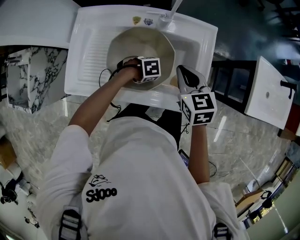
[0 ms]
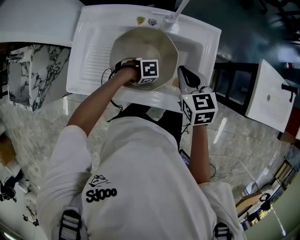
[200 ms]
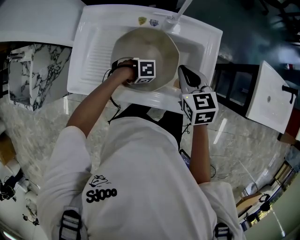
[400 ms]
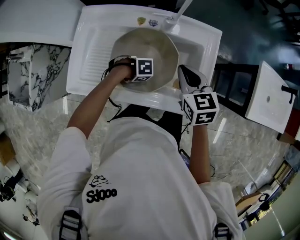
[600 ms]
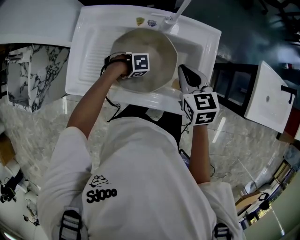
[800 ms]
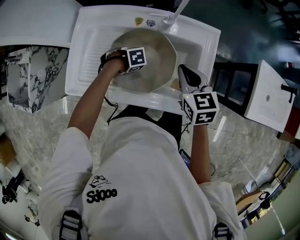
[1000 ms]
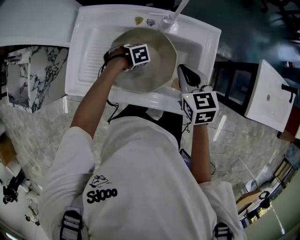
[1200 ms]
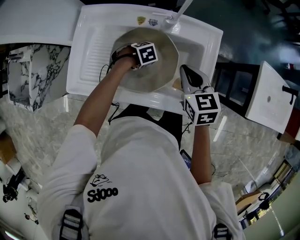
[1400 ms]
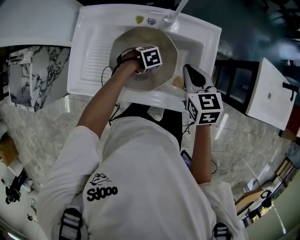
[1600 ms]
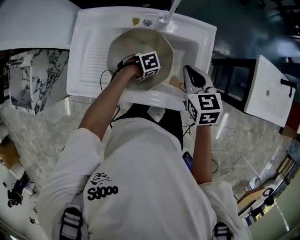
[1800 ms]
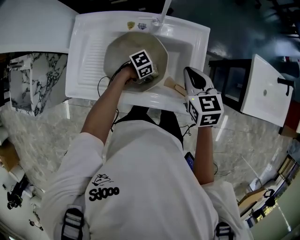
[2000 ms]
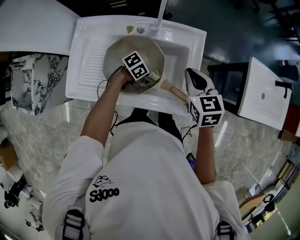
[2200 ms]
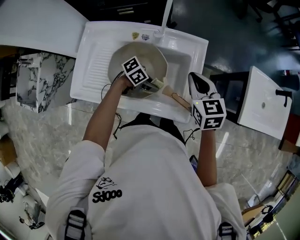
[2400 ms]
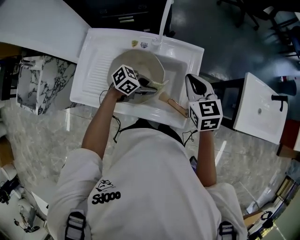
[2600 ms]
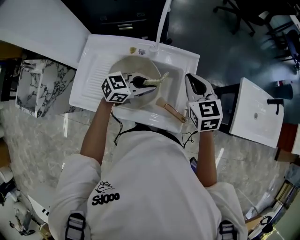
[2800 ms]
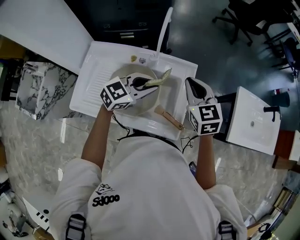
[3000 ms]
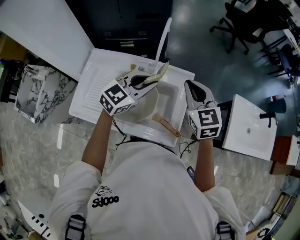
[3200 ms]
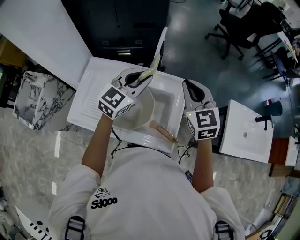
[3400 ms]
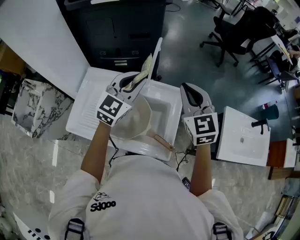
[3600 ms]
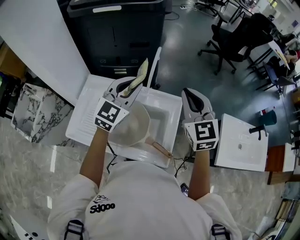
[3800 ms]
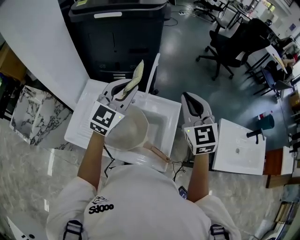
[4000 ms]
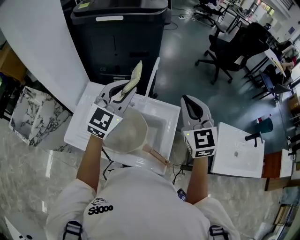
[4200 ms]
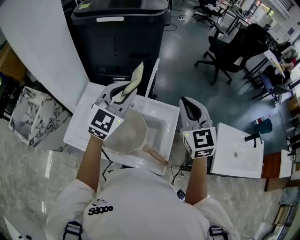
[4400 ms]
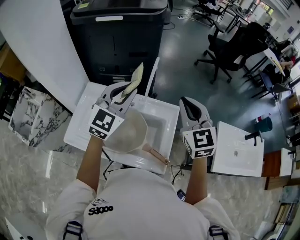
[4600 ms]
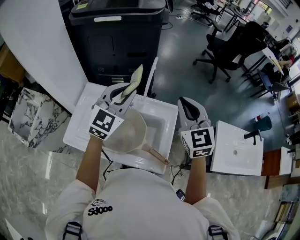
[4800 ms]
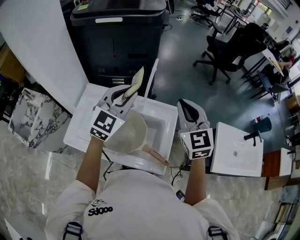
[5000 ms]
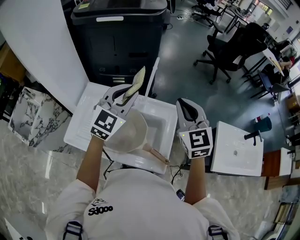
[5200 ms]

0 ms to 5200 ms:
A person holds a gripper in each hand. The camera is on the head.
1800 ms to 3400 ms: The left gripper travels upward by roughly 40 cm, and angles its fingers upward, by some 60 degrees. Meanwhile the right gripper heads upward, covering roughly 20 cm, and rotates approximately 30 degrees.
3400 ms to 5200 ms: The grippers both shift upward by approximately 5 cm.

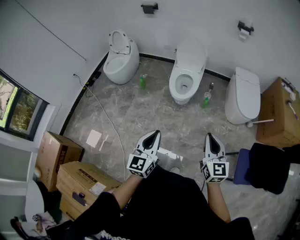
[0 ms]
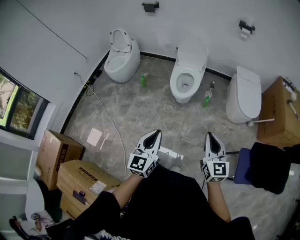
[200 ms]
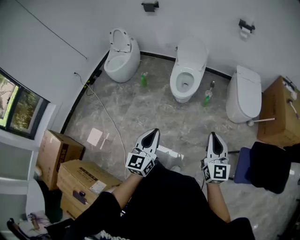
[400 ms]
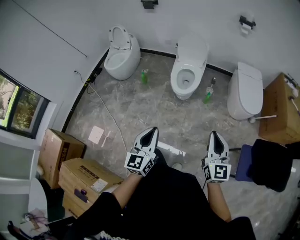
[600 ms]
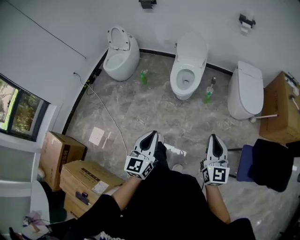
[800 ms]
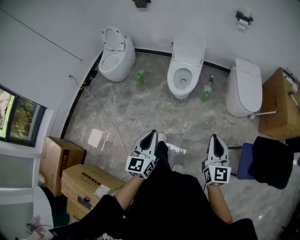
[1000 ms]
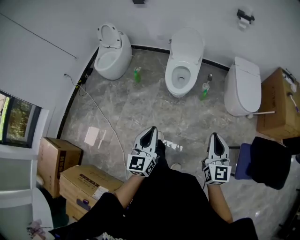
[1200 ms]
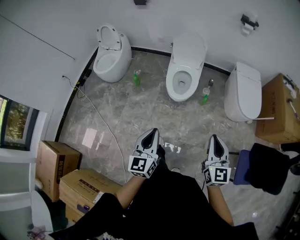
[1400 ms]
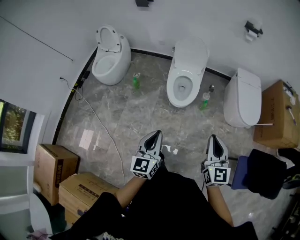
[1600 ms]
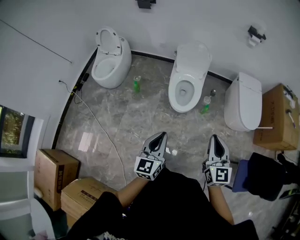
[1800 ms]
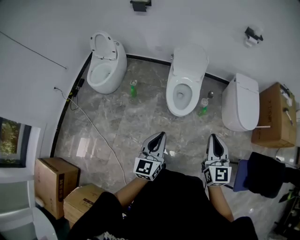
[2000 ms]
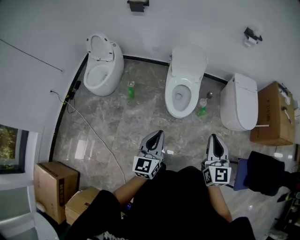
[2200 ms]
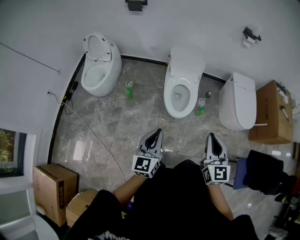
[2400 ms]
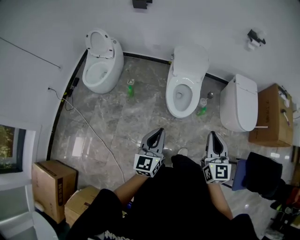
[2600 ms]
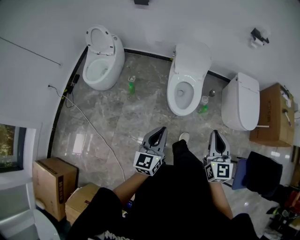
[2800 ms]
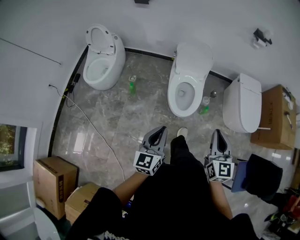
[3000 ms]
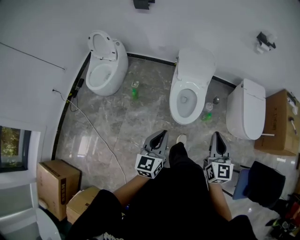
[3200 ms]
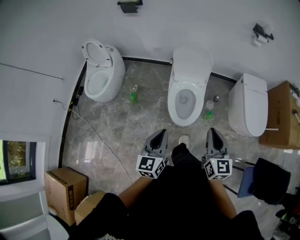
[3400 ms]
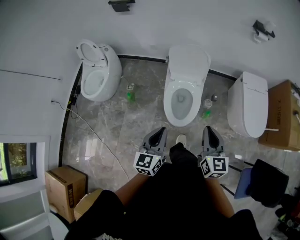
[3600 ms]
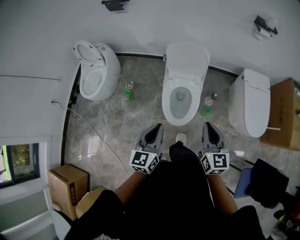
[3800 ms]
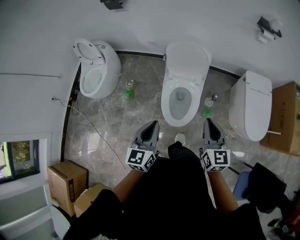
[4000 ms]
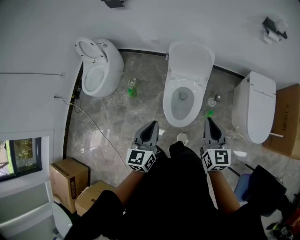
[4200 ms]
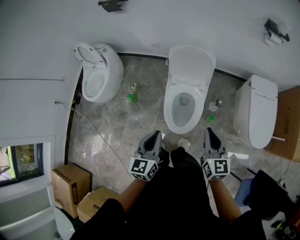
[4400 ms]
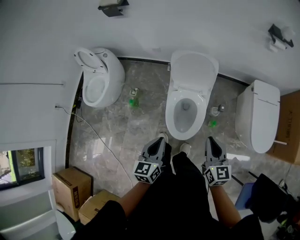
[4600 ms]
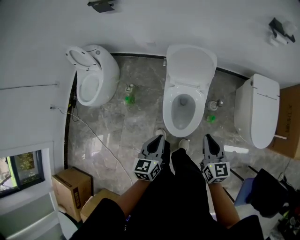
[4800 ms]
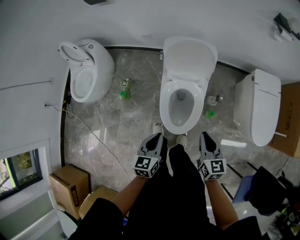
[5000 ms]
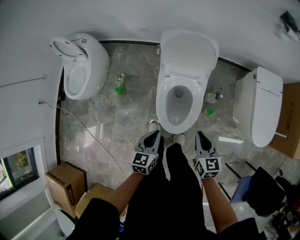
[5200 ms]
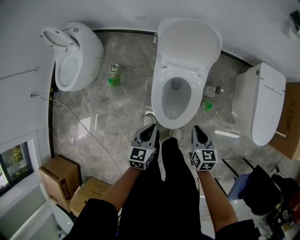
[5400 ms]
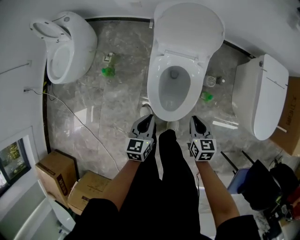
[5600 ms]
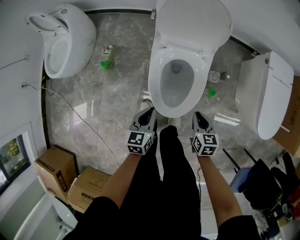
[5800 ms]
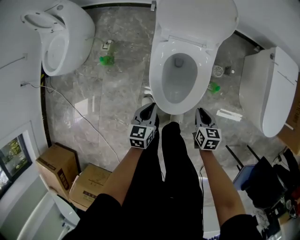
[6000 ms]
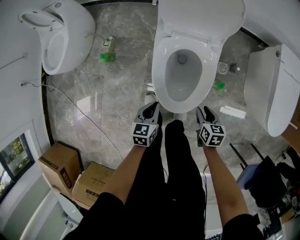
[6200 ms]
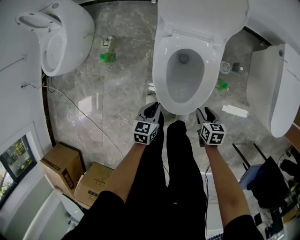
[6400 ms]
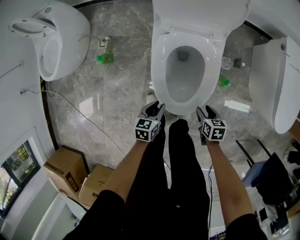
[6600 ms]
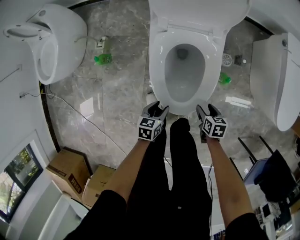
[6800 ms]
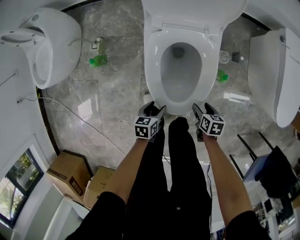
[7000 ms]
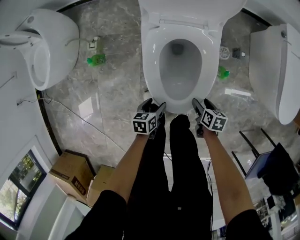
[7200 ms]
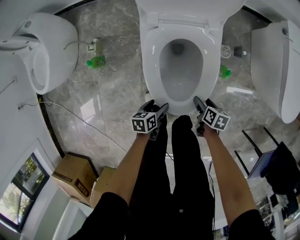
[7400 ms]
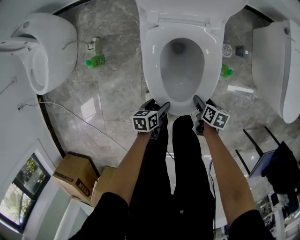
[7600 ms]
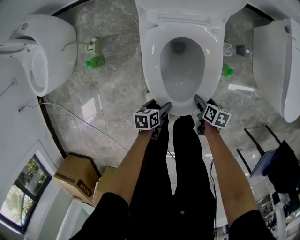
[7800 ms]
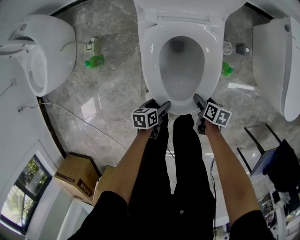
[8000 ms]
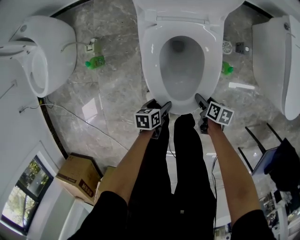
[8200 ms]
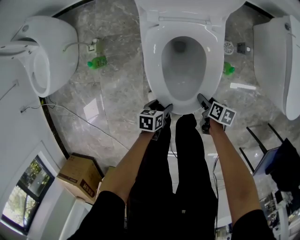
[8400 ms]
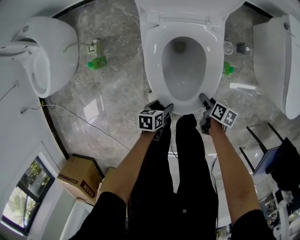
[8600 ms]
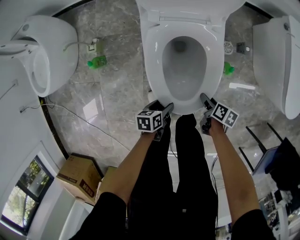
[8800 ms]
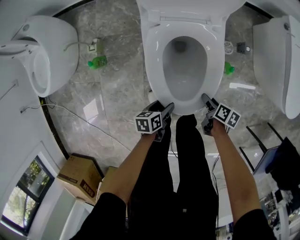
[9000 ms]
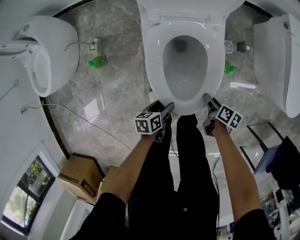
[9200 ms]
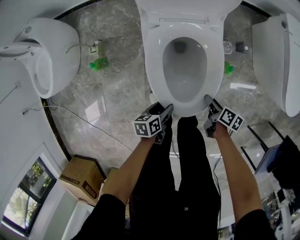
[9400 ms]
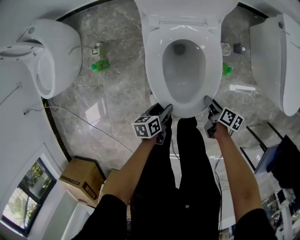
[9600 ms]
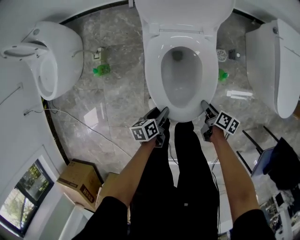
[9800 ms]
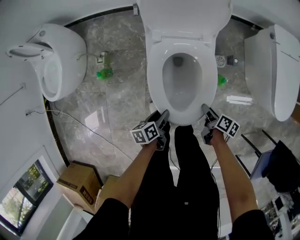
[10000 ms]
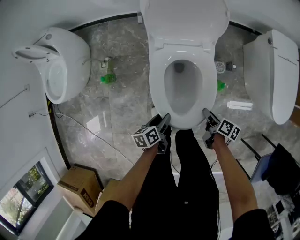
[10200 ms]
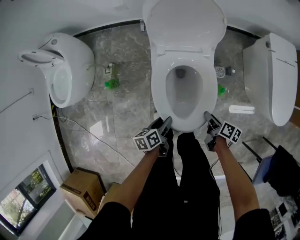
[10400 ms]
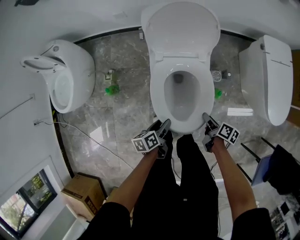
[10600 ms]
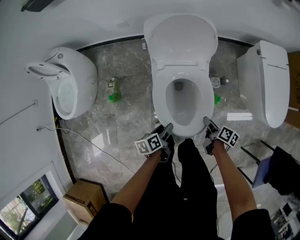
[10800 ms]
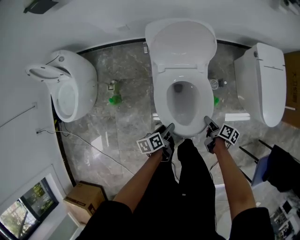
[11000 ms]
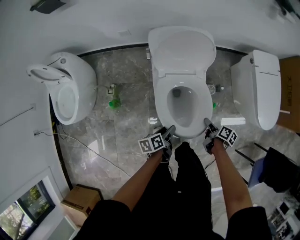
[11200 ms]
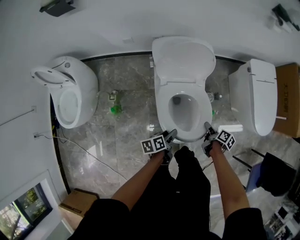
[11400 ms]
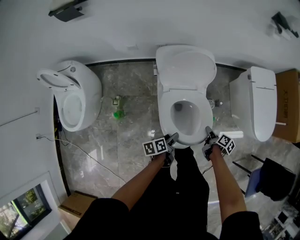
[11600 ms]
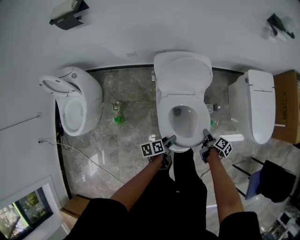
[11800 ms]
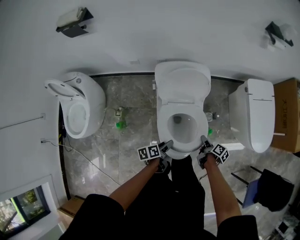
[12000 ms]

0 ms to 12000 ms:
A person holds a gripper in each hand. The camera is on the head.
0 ms to 1600 ms: Both grippers move forward, some 20 cm.
1600 ms to 3000 ms: Both grippers travel together forward and to the left, roughly 20 cm.
3000 ms to 4400 ms: The right gripper is displaced forward by approximately 25 cm, while the left gripper shifts about 25 cm forward and to the right.
4400 ms to 6000 ms: Both grippers travel together downward, about 40 cm. The right gripper tilts its fingers roughly 30 degrees downward; the left gripper changes its angle by approximately 20 degrees.
6000 ms to 7600 ms: The two grippers go roughly 20 cm downward. The left gripper turns by approximately 30 degrees, and opens, while the right gripper turns by about 30 degrees, and opens its fingers.
7600 ms to 9000 ms: There are only small adjustments of the grippers.
9000 ms to 10400 ms: Both grippers move upward, some 15 cm.
10400 ms to 12000 ms: Both grippers move upward and forward, roughly 15 cm.

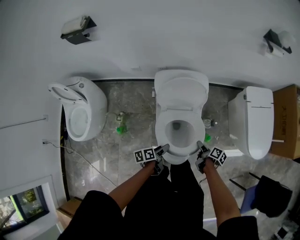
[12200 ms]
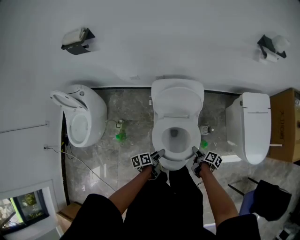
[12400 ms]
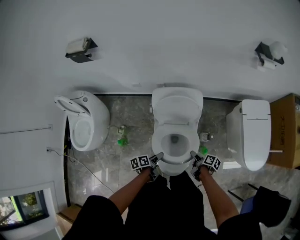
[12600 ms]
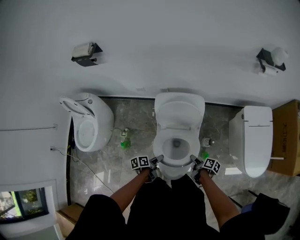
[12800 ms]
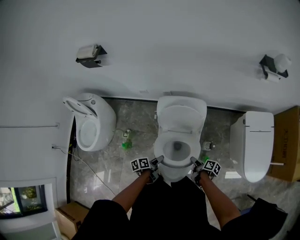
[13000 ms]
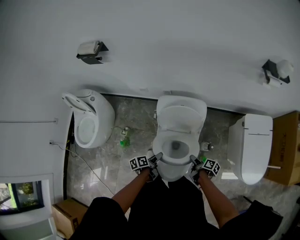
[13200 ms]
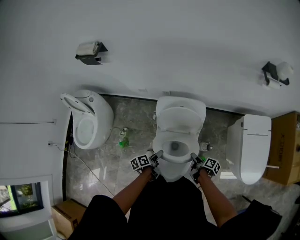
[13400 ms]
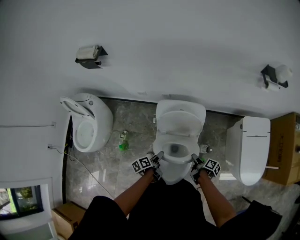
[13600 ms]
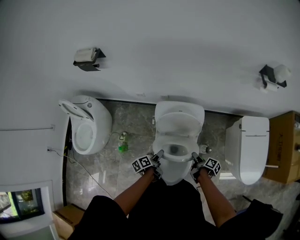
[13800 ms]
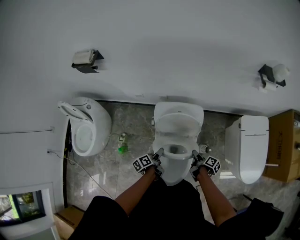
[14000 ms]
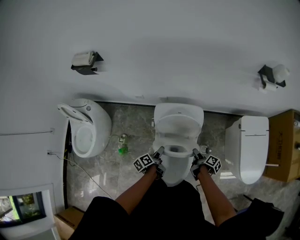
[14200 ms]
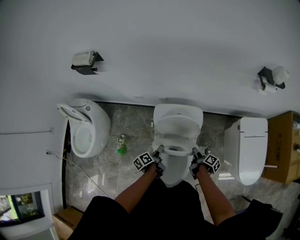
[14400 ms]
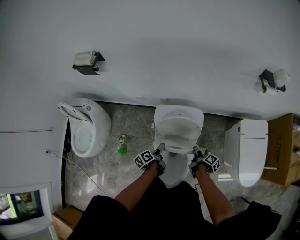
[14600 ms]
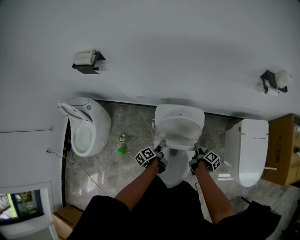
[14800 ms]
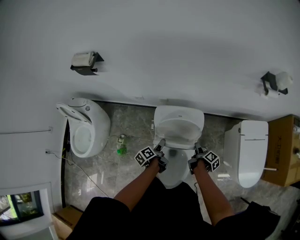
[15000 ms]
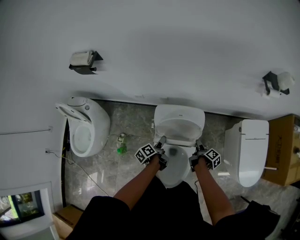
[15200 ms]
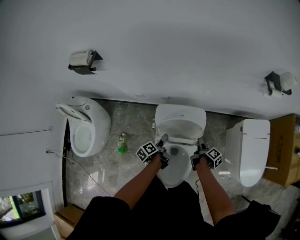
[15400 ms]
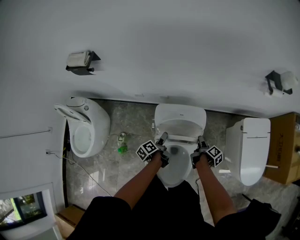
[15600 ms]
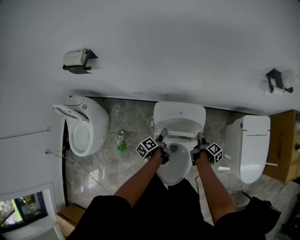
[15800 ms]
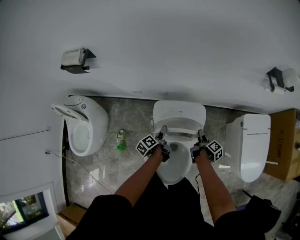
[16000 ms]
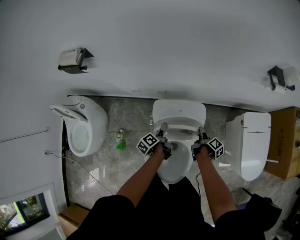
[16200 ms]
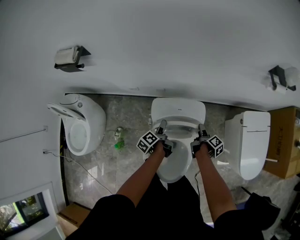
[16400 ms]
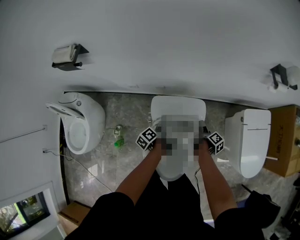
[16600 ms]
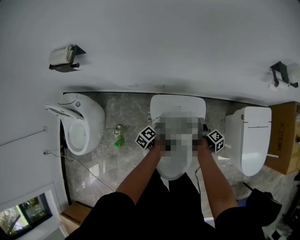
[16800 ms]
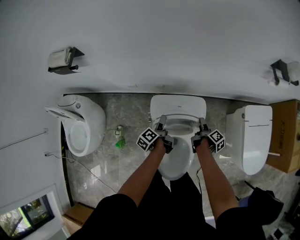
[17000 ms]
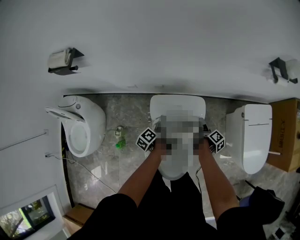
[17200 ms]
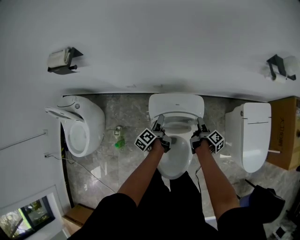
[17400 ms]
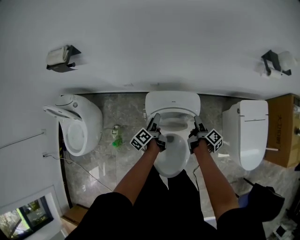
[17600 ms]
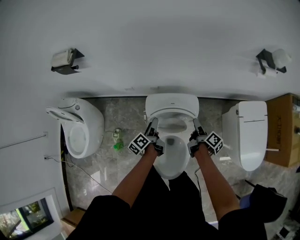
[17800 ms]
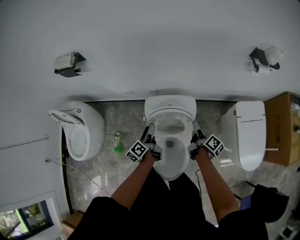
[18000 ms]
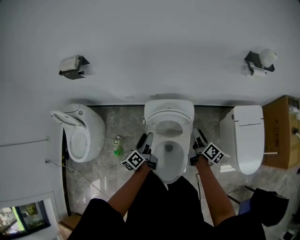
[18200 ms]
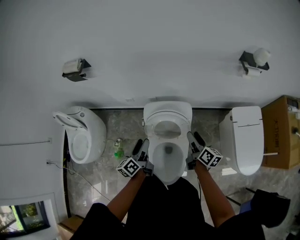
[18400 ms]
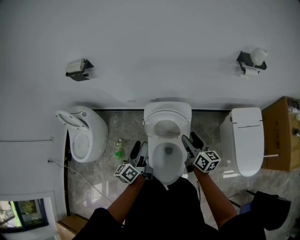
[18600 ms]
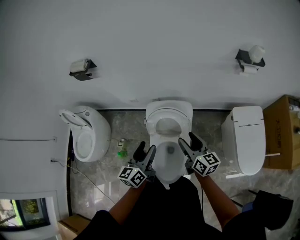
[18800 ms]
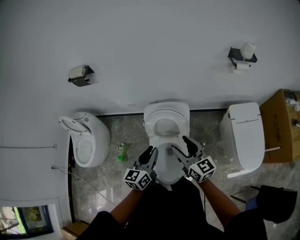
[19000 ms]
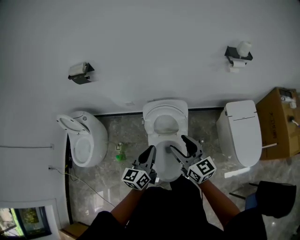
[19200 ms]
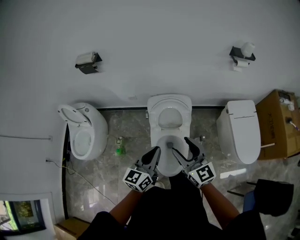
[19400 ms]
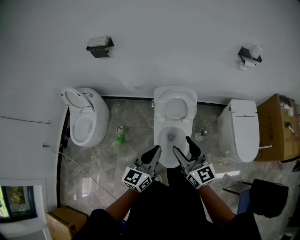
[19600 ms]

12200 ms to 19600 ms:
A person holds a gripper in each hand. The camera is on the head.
12200 ms to 13600 ms: Both grippers travel together forward and upward, some 10 cm.
13600 ms to 15200 ms: Both grippers move forward, some 15 cm.
15200 ms to 16600 ms: Both grippers travel together forward, approximately 10 cm.
16600 ms to 18200 ms: Both grippers travel together upward and backward, about 20 cm. The left gripper turns by some 30 degrees; the right gripper turns by some 30 degrees.
18200 ms to 19600 ms: The right gripper shifts about 40 cm backward, to the left and upward, and twists about 60 degrees counterclockwise, seen from behind. The left gripper heads backward and upward, covering some 35 cm, rolls clockwise, seen from behind, by some 40 degrees, and closes up.
